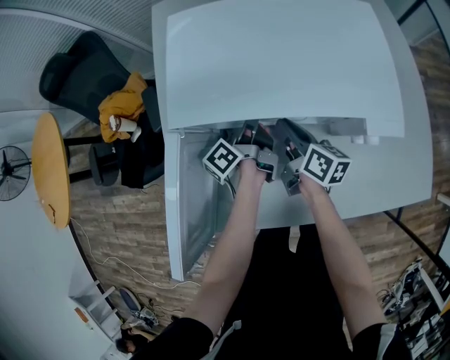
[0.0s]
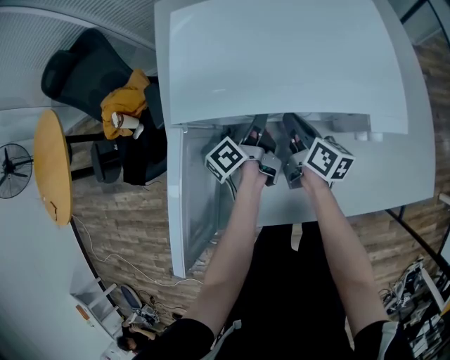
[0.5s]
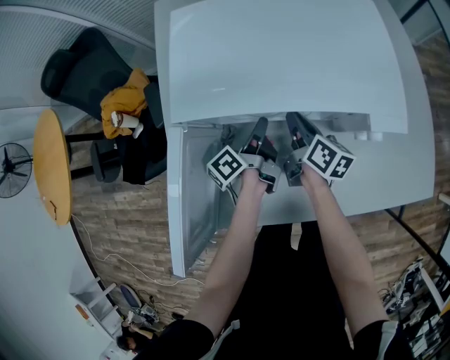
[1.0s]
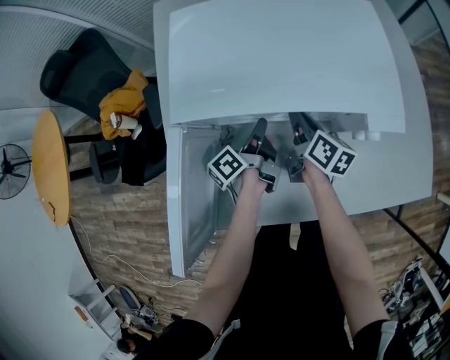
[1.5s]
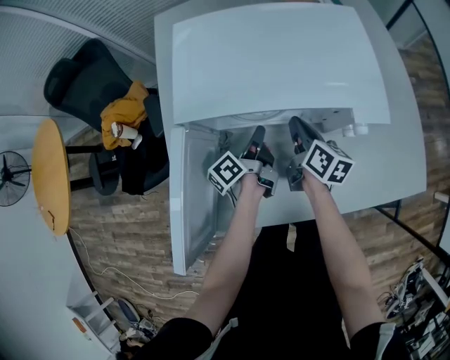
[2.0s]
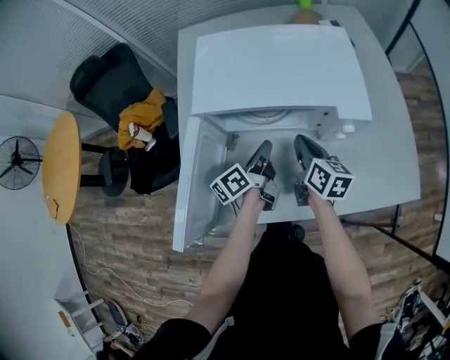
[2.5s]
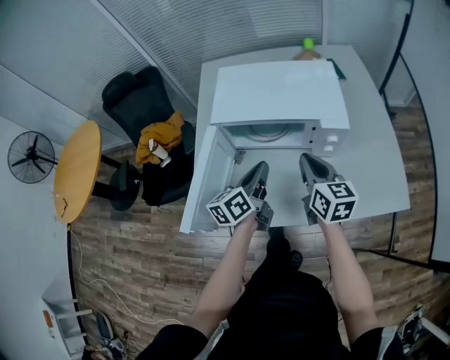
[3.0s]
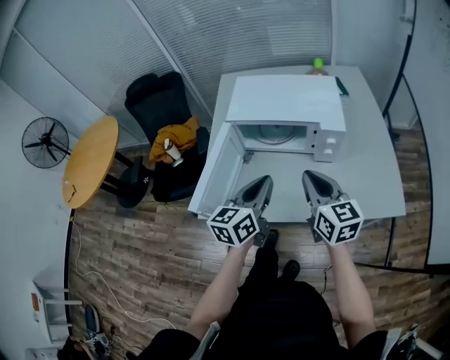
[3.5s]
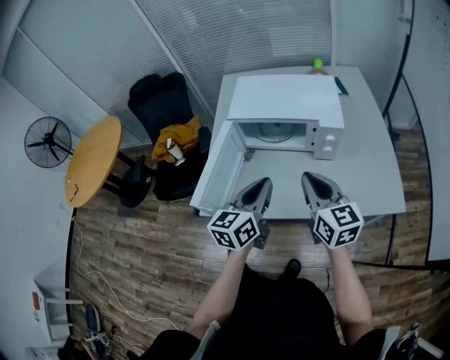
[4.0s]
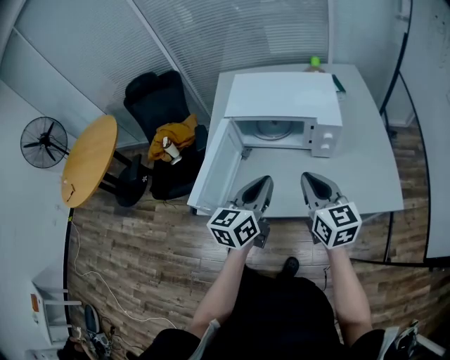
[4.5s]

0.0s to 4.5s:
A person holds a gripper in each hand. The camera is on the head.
0.0s to 2.0s: The left gripper is displaced backward by roughly 5 cm.
2.0s to 4.5s: The right gripper moves backward and upward, roughly 35 cm, and rotates around the line of its fingers by roughly 40 degrees, counterclockwise from behind. Meanwhile the left gripper is displaced upward and backward by some 35 cm, and rotates around the line of its fingers by about 60 degrees, clockwise from behind.

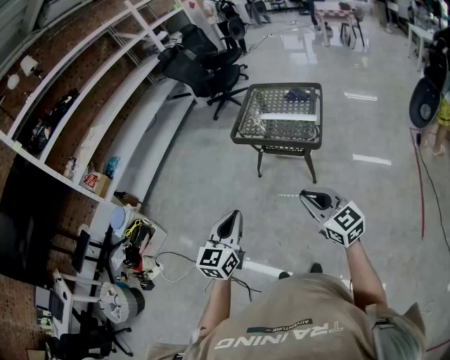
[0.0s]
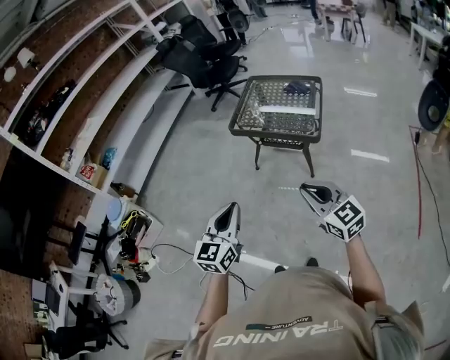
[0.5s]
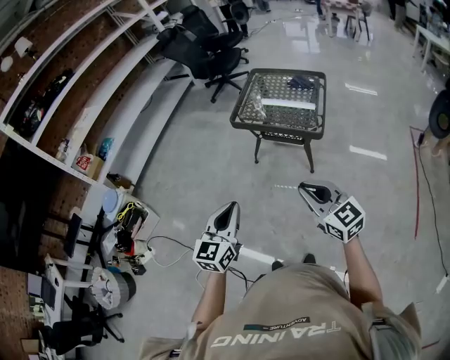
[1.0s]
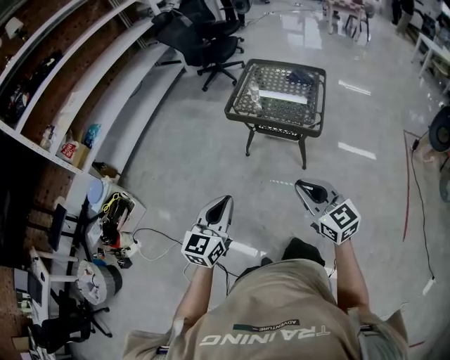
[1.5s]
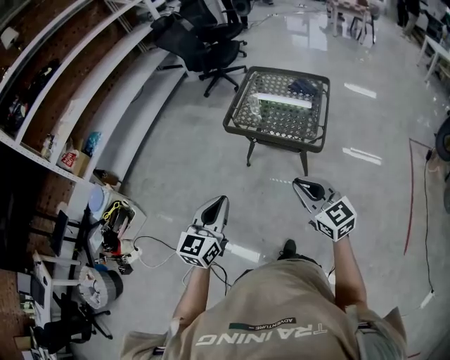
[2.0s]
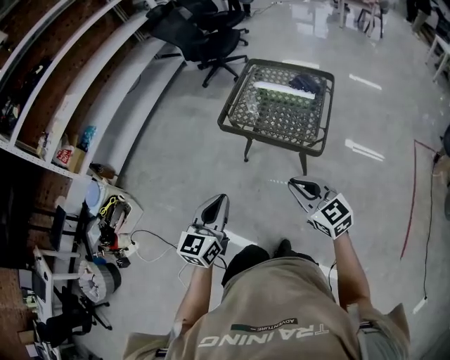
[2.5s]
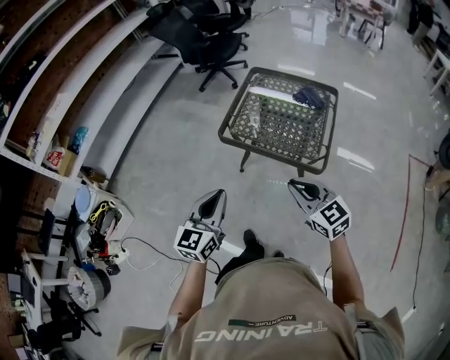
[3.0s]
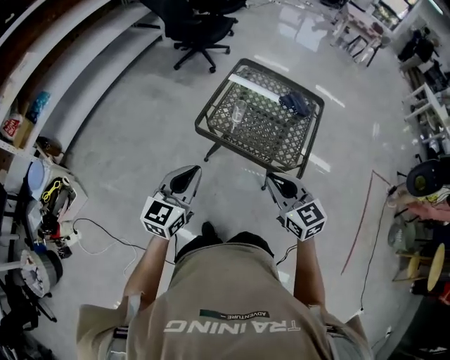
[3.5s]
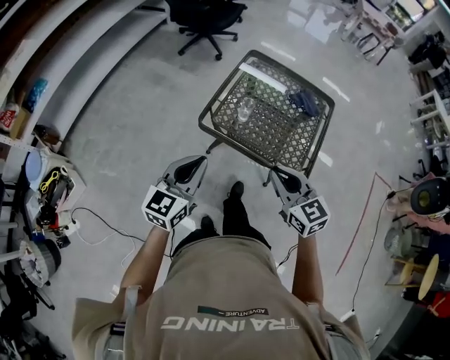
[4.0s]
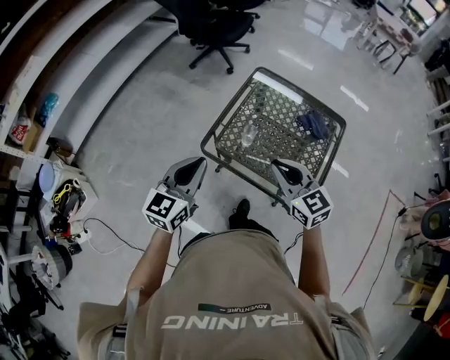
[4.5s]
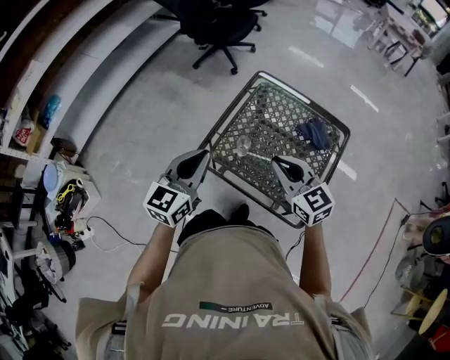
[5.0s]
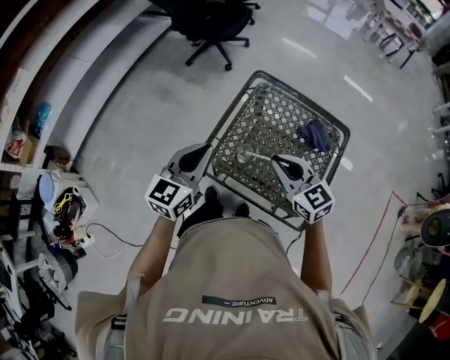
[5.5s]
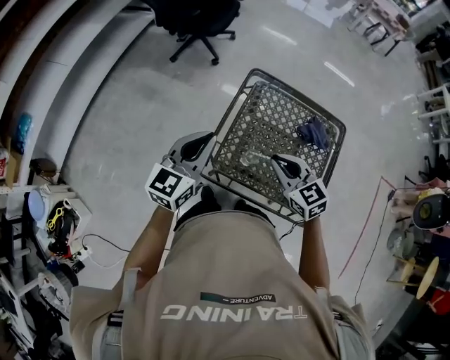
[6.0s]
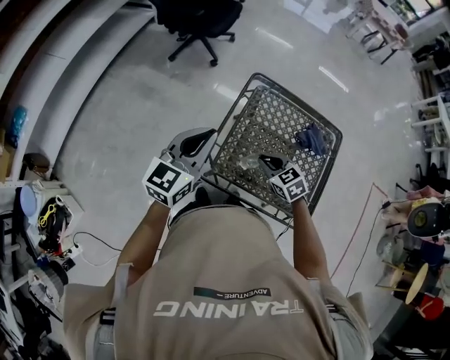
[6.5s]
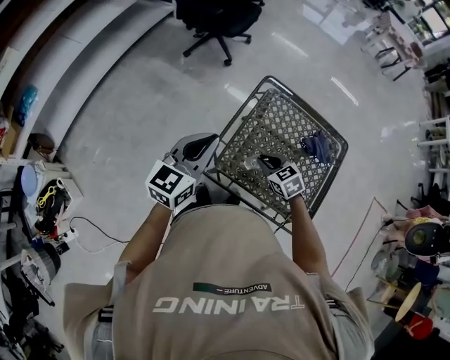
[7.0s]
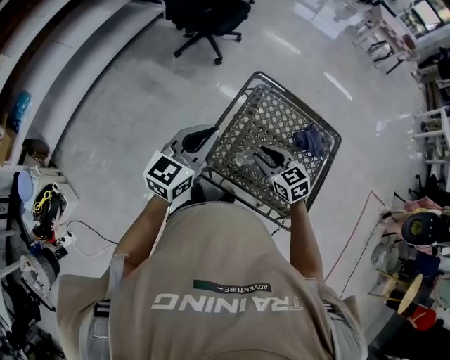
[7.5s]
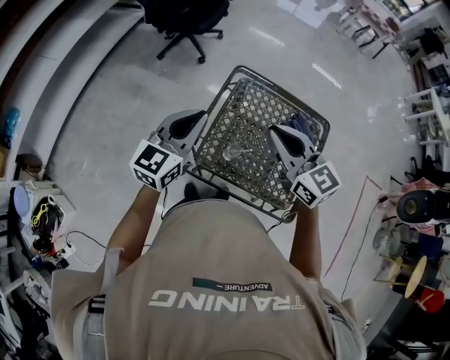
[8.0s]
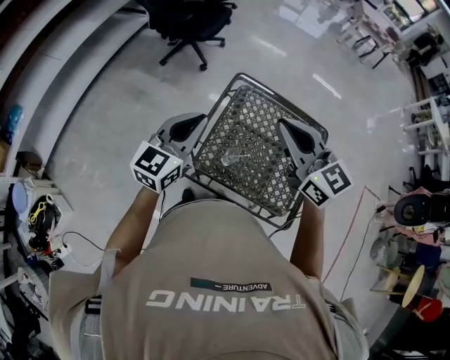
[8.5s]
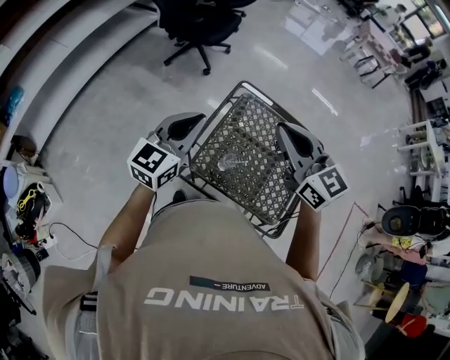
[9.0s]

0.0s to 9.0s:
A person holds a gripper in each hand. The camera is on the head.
0.0s to 2.0s: The two grippers go some 15 cm forward.
2.0s to 4.5s: The two grippers travel together, forward, roughly 40 cm.
4.5s to 7.0s: The right gripper heads forward and downward, covering about 25 cm, and tips its fingers downward by approximately 30 degrees; the left gripper is displaced forward by about 20 cm.
7.0s to 9.0s: The right gripper moves upward, approximately 35 cm, points its fingers some 40 degrees further upward, and opens, then closes again. Meanwhile the left gripper is displaced upward by some 5 cm.

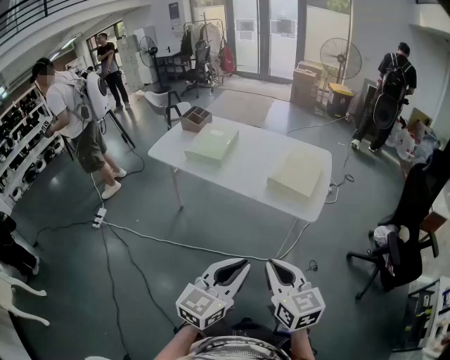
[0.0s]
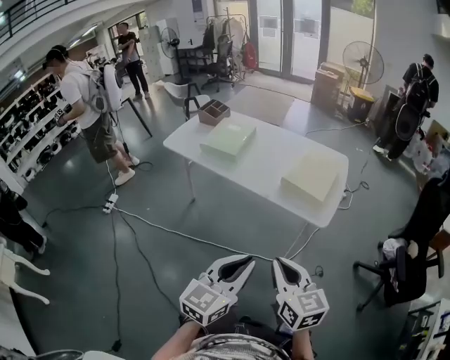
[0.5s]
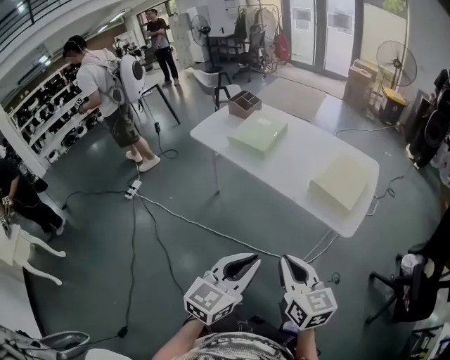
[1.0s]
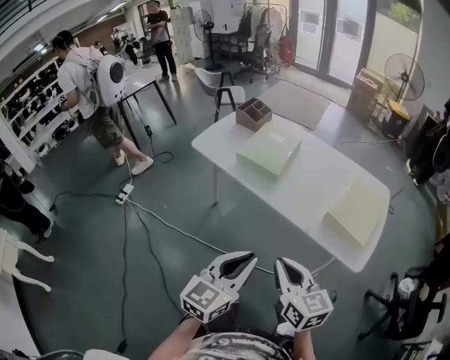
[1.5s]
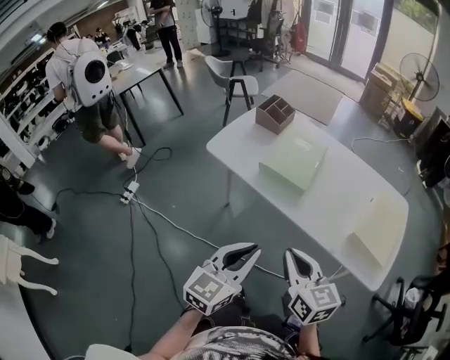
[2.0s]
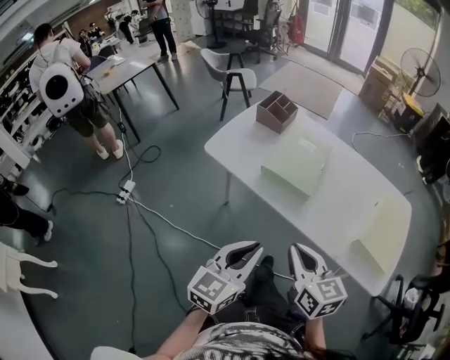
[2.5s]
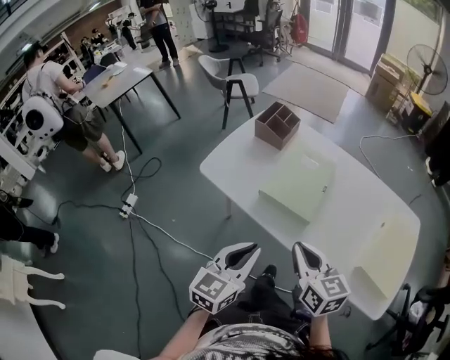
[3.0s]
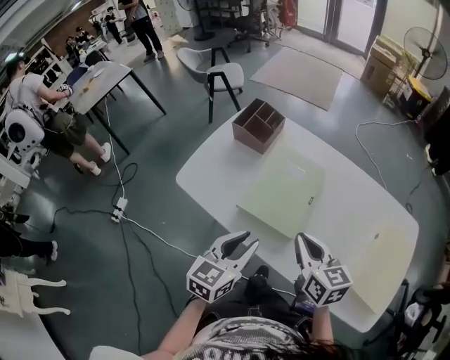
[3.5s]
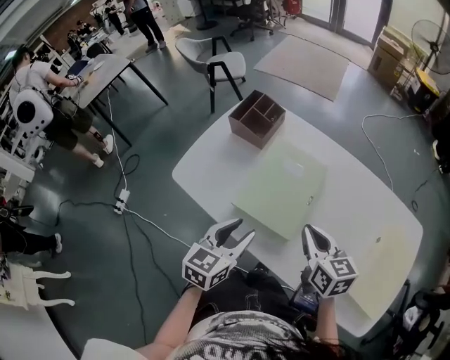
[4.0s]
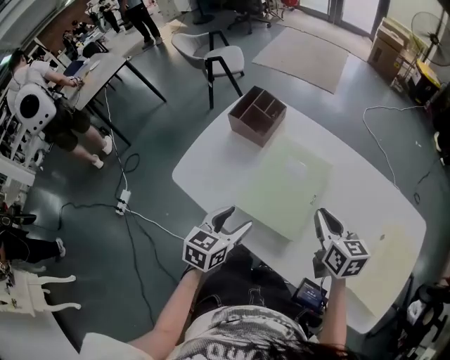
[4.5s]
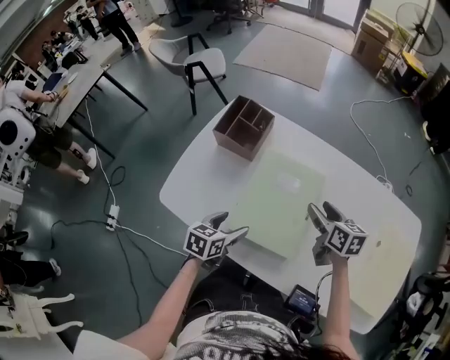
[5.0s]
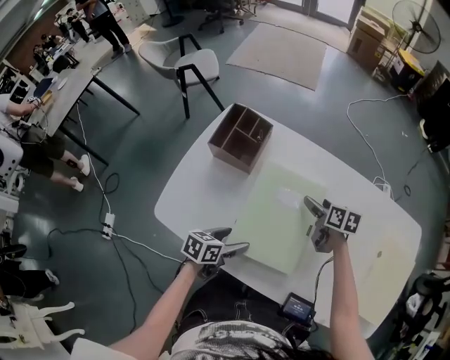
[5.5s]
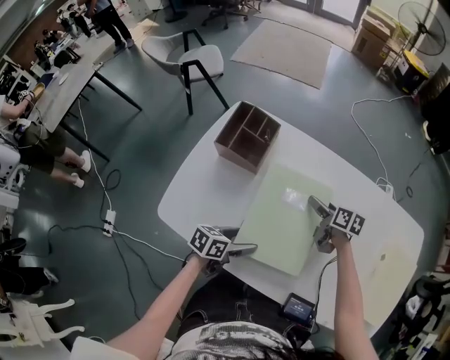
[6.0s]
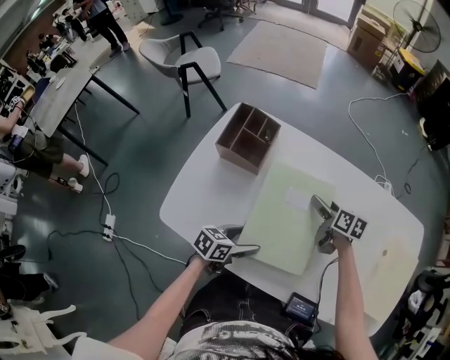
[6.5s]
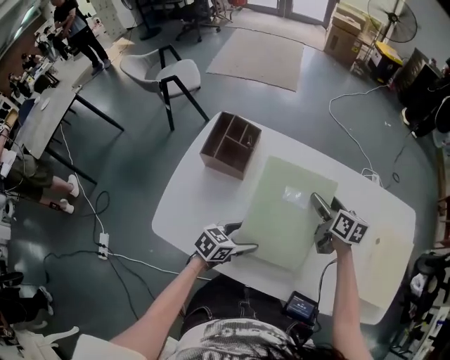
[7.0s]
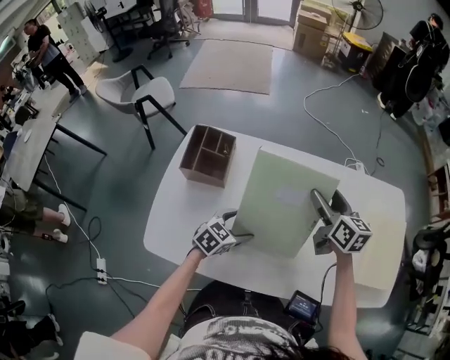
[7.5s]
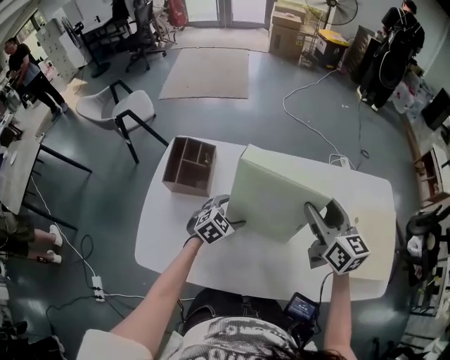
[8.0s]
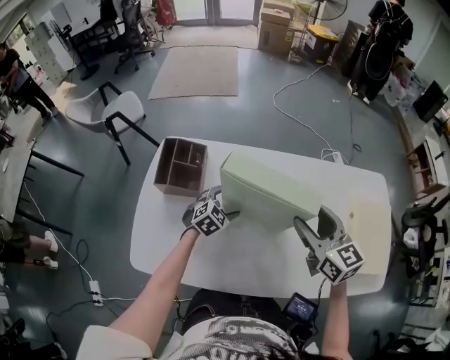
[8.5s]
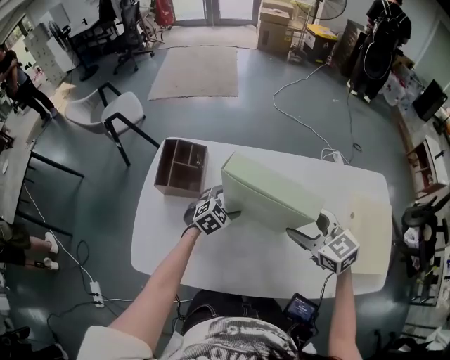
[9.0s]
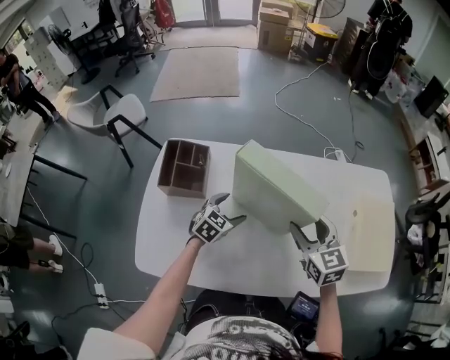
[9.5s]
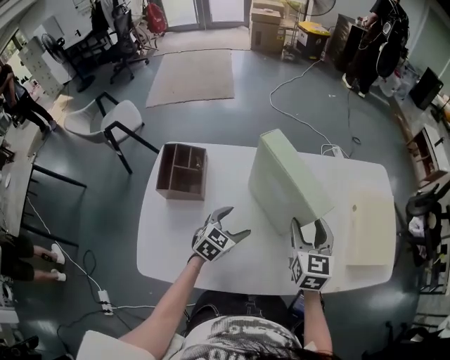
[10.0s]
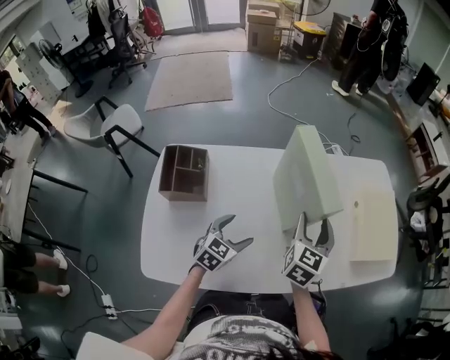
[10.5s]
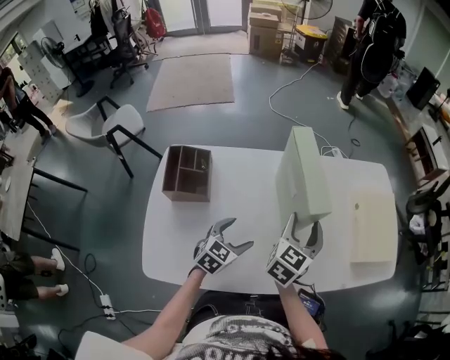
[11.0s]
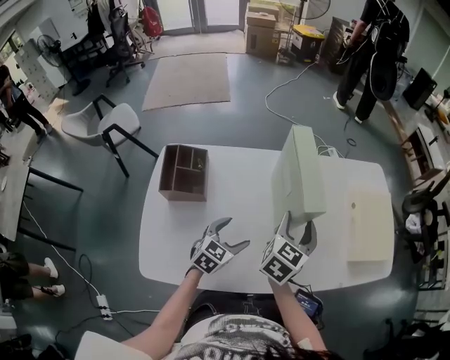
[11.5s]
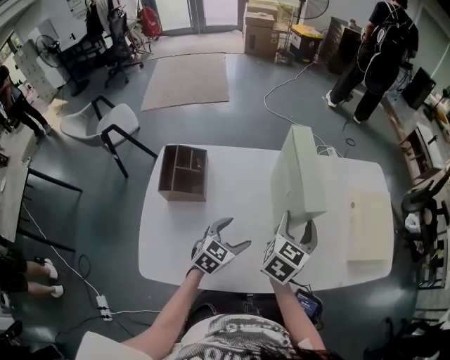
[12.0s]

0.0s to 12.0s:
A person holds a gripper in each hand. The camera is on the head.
0.0s to 2.0s: The grippers both shift forward and to the left by about 40 cm.
2.0s to 4.0s: The two grippers go approximately 35 cm forward.
4.0s to 6.0s: The right gripper travels forward and downward by some 30 cm, changes its angle by approximately 40 degrees, and opens its fingers, while the left gripper is displaced downward and forward by approximately 20 cm, changes its angle by roughly 50 degrees, and opens its fingers.
6.0s to 8.0s: The left gripper is displaced forward by approximately 15 cm, and rotates around the line of its fingers by roughly 60 degrees, clockwise from behind; the right gripper moves upward, approximately 25 cm, and changes its angle by about 40 degrees.
8.0s to 10.0s: The right gripper shifts some 10 cm downward and backward, and turns by some 30 degrees.
10.0s to 12.0s: The right gripper swivels roughly 30 degrees.

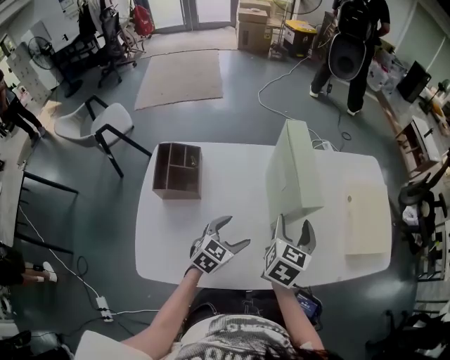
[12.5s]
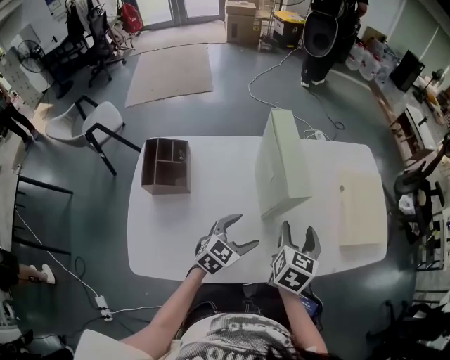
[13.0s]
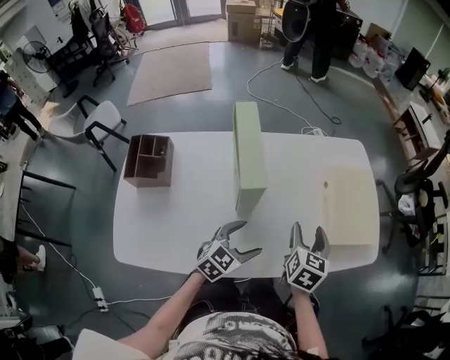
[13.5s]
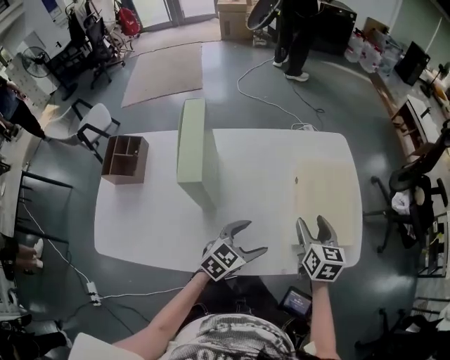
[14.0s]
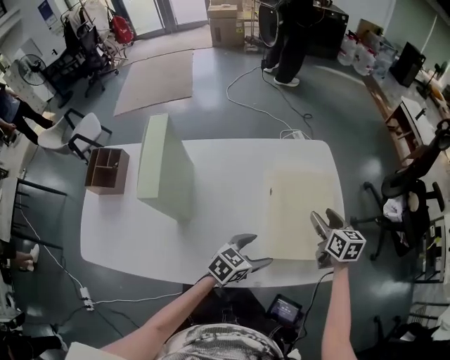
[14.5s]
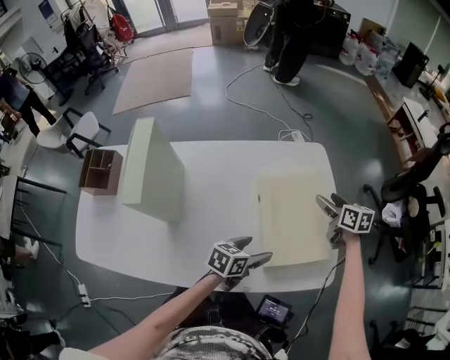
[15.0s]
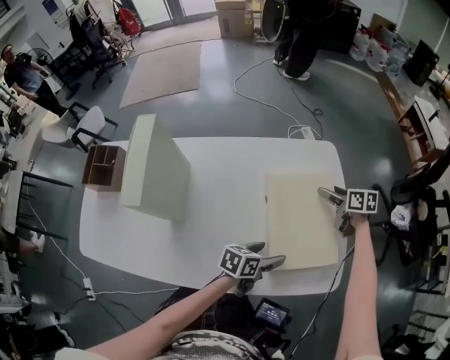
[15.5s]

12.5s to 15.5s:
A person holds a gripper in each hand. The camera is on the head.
12.5s to 14.0s: The left gripper moves to the right, some 30 cm. The right gripper is displaced to the right and forward by approximately 30 cm, and turns by approximately 20 degrees.
14.0s to 15.5s: The right gripper heads forward, to the right and downward, covering about 30 cm, and rotates about 30 degrees; the left gripper heads to the right, forward and downward, covering roughly 20 cm, and twists some 40 degrees counterclockwise, seen from behind.
